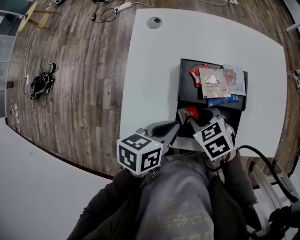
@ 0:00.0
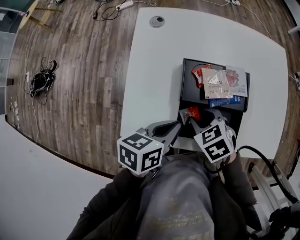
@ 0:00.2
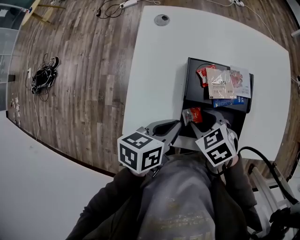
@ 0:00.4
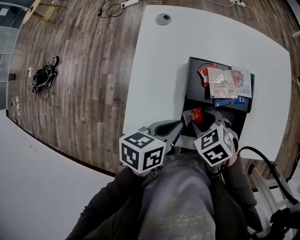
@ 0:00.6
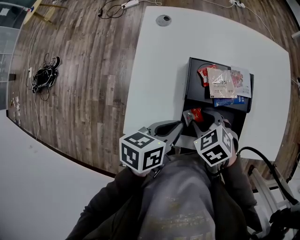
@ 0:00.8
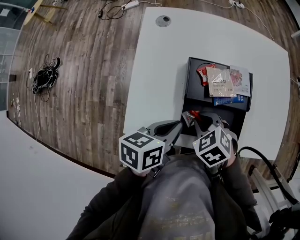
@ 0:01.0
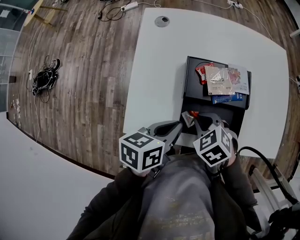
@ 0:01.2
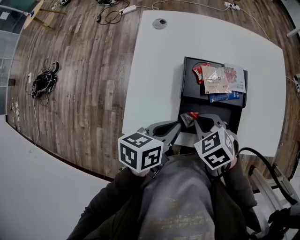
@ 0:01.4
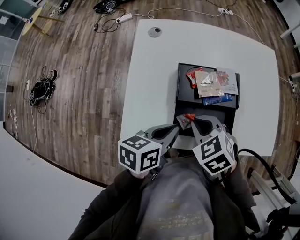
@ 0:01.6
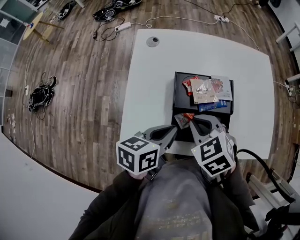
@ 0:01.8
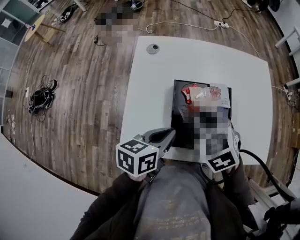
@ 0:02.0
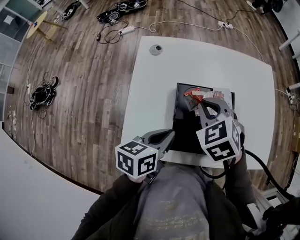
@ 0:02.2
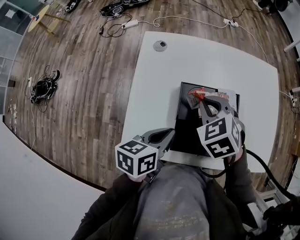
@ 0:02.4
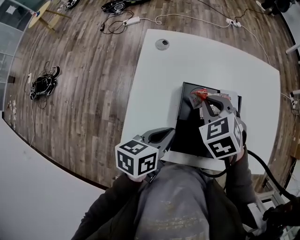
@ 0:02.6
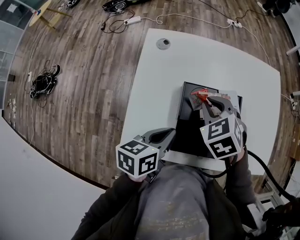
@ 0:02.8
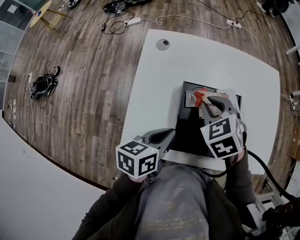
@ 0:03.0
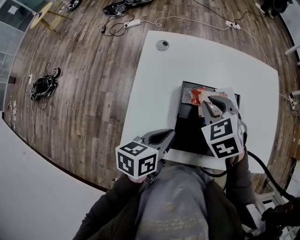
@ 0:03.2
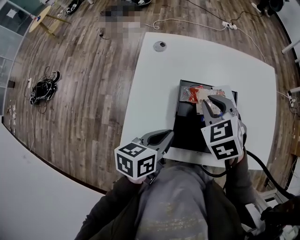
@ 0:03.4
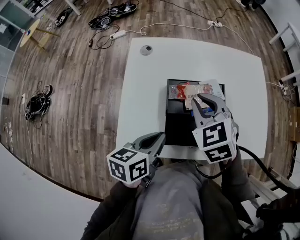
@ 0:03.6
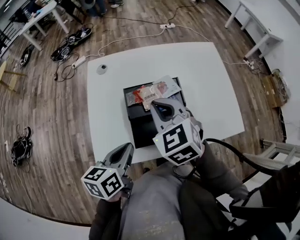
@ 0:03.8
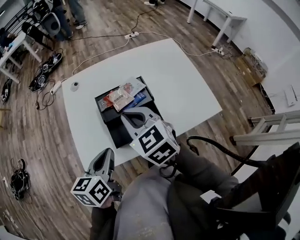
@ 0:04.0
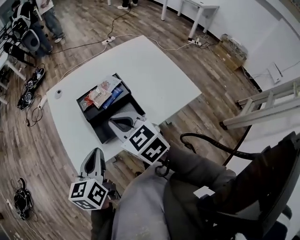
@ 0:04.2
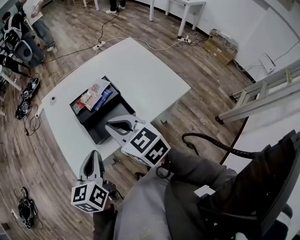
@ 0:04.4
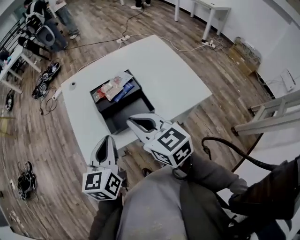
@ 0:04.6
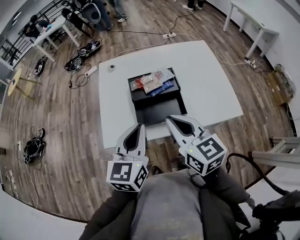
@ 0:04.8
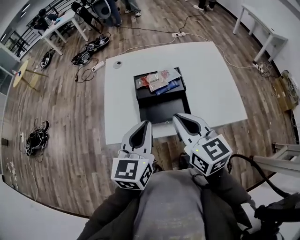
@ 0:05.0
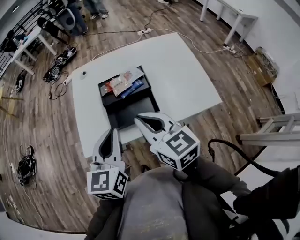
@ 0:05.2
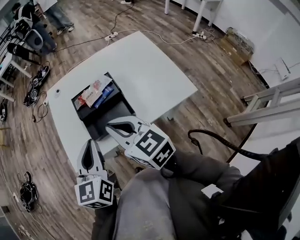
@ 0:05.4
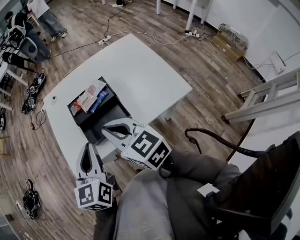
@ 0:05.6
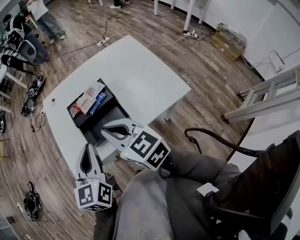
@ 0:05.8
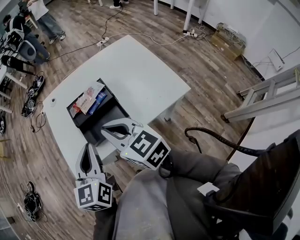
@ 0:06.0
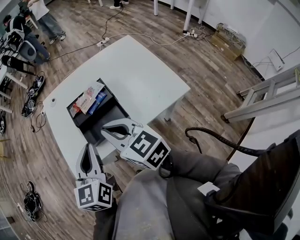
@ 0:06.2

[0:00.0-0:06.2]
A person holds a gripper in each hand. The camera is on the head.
0:00.0 to 0:01.6: The right gripper goes about 5 cm upward, and closes up.
0:01.6 to 0:03.2: The right gripper shifts approximately 15 cm forward and upward.
0:03.2 to 0:04.6: The two grippers go roughly 25 cm backward, upward and to the right. The left gripper turns by some 30 degrees. The right gripper angles its fingers upward, by roughly 40 degrees.
0:04.6 to 0:06.2: There are only small adjustments of the grippers.

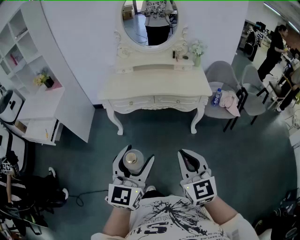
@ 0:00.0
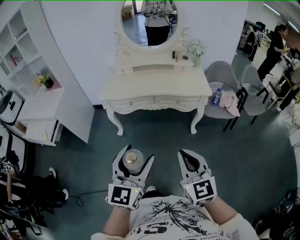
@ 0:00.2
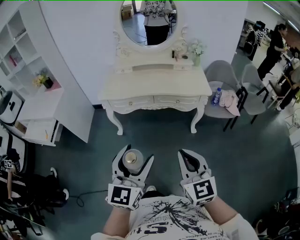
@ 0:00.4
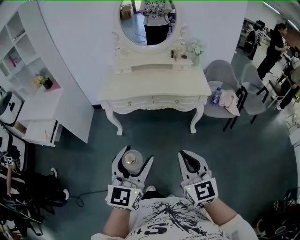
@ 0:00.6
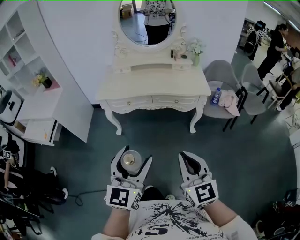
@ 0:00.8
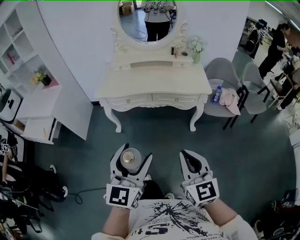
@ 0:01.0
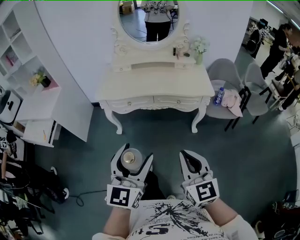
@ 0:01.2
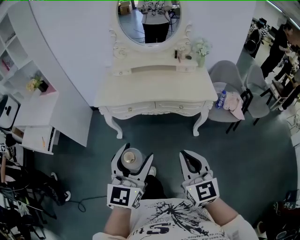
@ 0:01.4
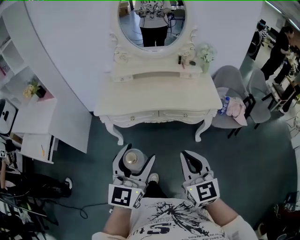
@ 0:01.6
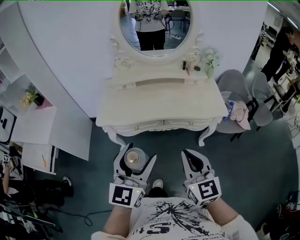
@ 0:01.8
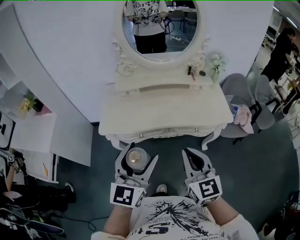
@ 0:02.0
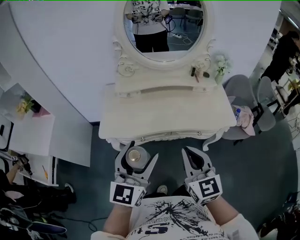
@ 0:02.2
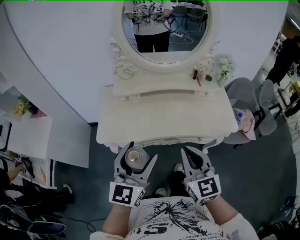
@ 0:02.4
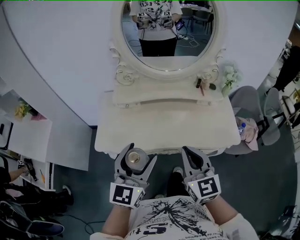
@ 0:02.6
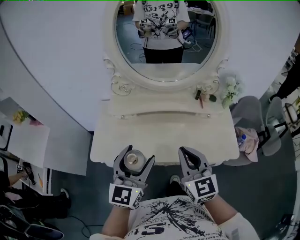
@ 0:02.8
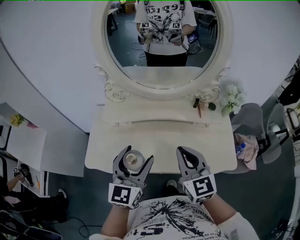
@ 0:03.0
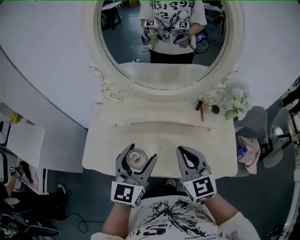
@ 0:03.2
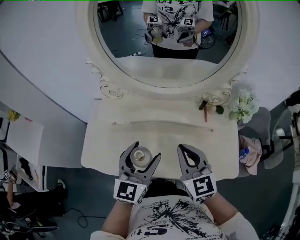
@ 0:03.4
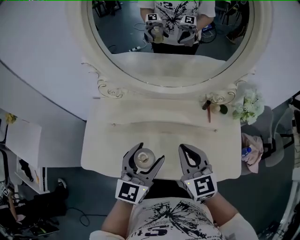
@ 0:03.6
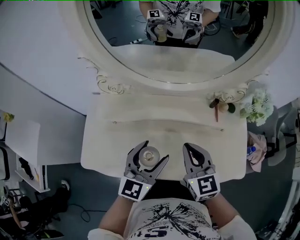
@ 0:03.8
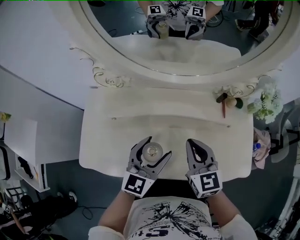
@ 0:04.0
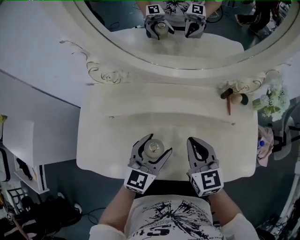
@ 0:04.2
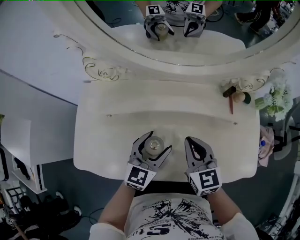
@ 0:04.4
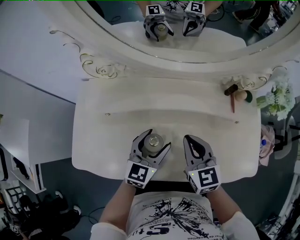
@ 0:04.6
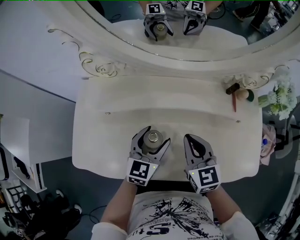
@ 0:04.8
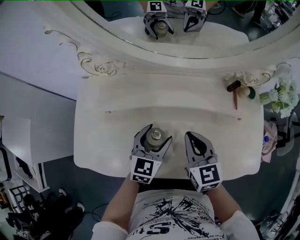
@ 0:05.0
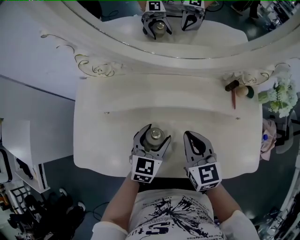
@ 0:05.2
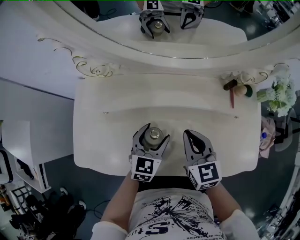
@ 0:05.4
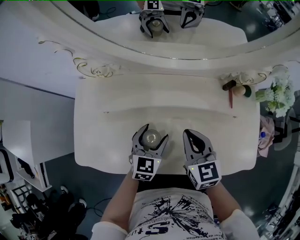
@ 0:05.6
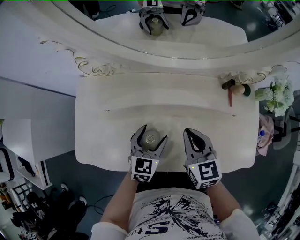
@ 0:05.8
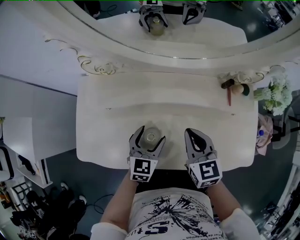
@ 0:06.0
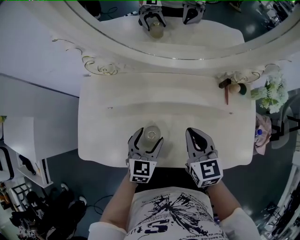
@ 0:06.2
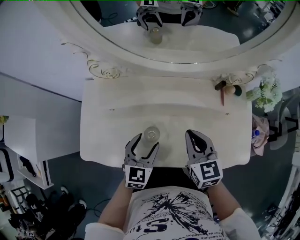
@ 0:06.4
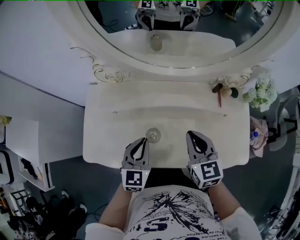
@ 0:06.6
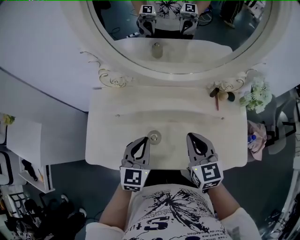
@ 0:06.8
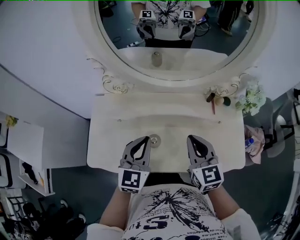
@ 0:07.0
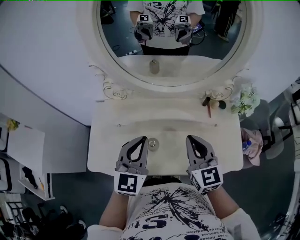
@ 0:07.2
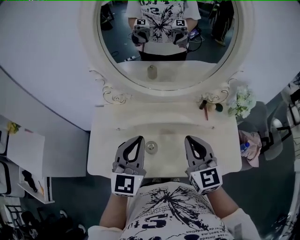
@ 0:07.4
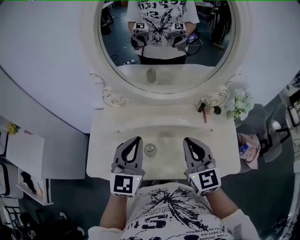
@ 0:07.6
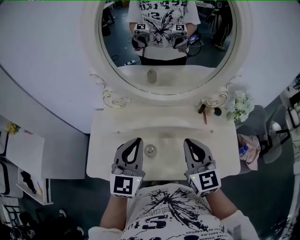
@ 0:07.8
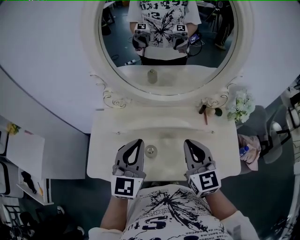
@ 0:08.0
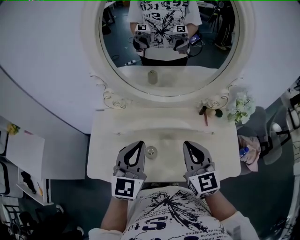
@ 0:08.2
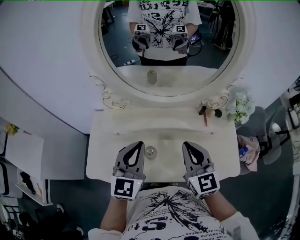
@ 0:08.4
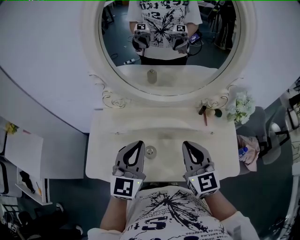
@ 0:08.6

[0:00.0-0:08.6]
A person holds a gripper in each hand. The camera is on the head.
0:00.0 to 0:01.4: Both grippers travel together forward, approximately 10 cm.
0:01.4 to 0:02.8: The pair of grippers is taken forward, some 40 cm.
0:02.8 to 0:04.4: Both grippers travel together downward and forward, roughly 30 cm.
0:04.4 to 0:05.8: The grippers move only a little.
0:05.8 to 0:07.2: The left gripper moves upward, roughly 25 cm, changes its angle by roughly 30 degrees, and closes, while the right gripper moves upward, approximately 15 cm.
0:07.2 to 0:08.6: The grippers move only a little.

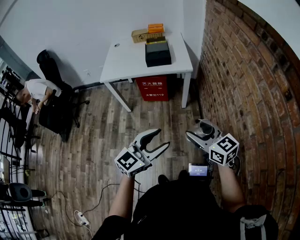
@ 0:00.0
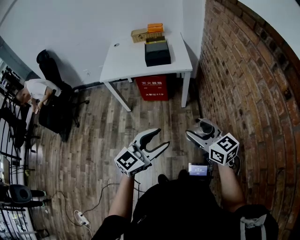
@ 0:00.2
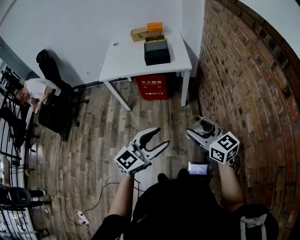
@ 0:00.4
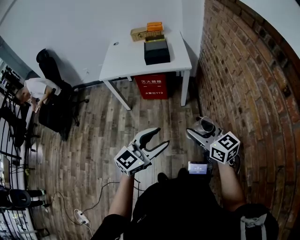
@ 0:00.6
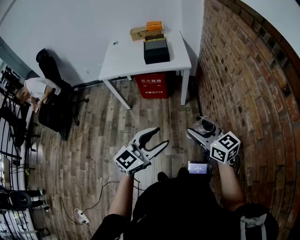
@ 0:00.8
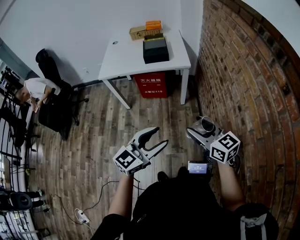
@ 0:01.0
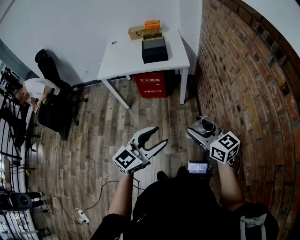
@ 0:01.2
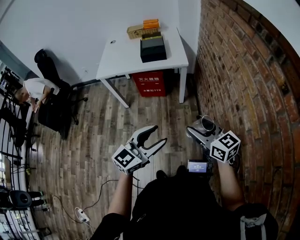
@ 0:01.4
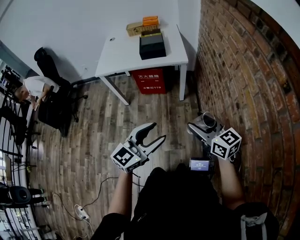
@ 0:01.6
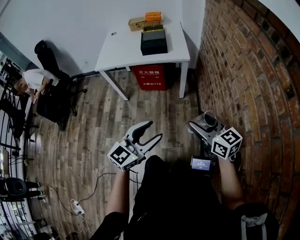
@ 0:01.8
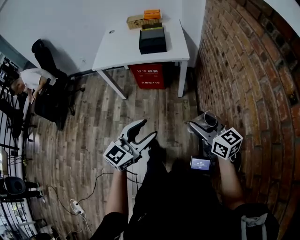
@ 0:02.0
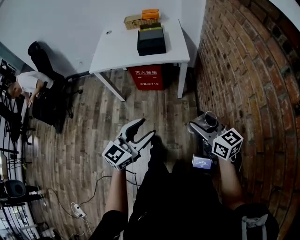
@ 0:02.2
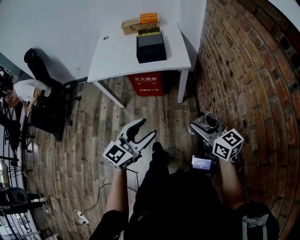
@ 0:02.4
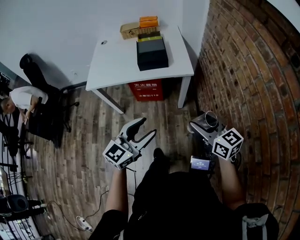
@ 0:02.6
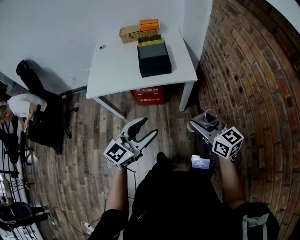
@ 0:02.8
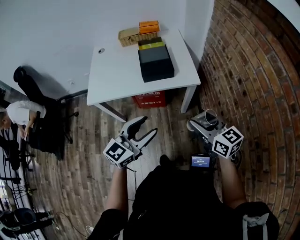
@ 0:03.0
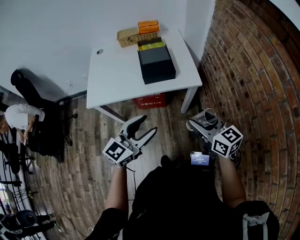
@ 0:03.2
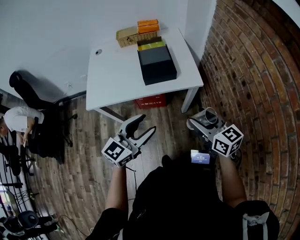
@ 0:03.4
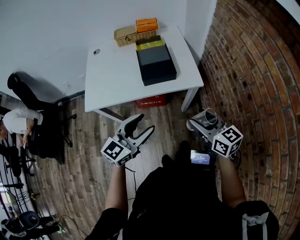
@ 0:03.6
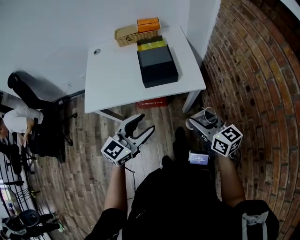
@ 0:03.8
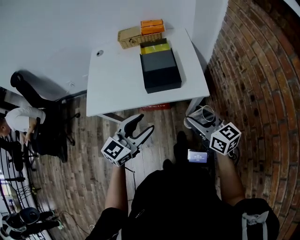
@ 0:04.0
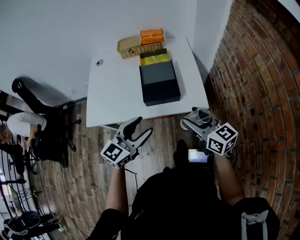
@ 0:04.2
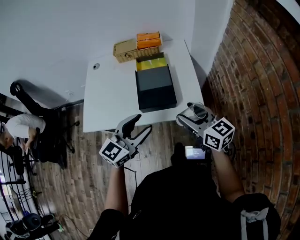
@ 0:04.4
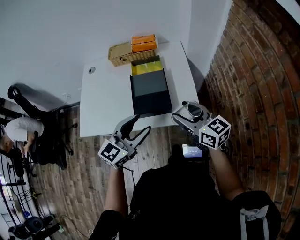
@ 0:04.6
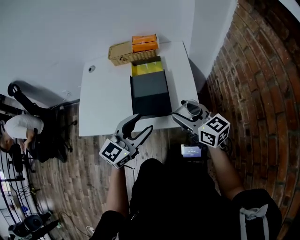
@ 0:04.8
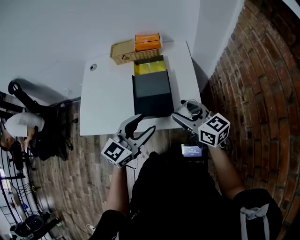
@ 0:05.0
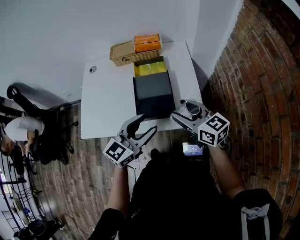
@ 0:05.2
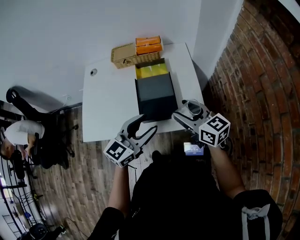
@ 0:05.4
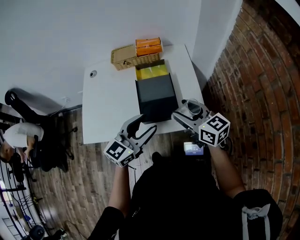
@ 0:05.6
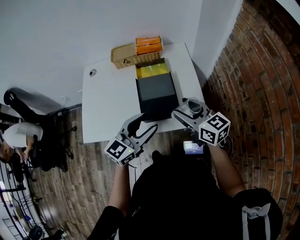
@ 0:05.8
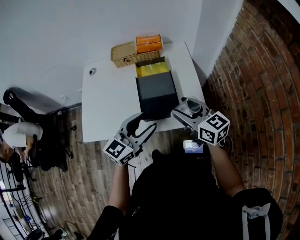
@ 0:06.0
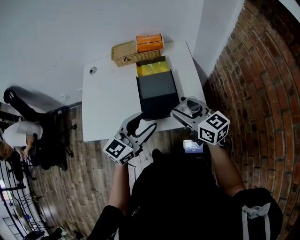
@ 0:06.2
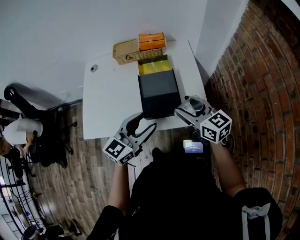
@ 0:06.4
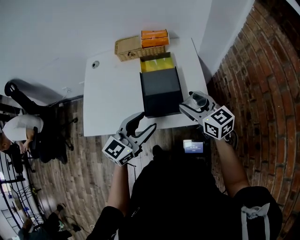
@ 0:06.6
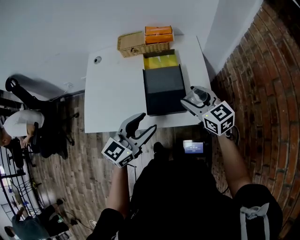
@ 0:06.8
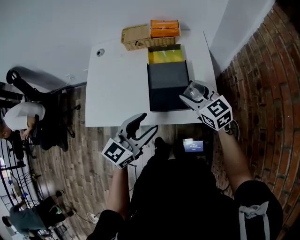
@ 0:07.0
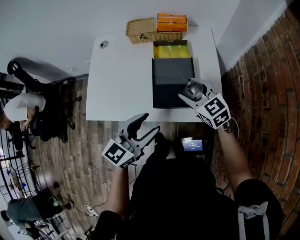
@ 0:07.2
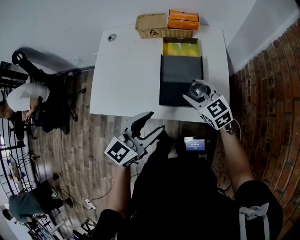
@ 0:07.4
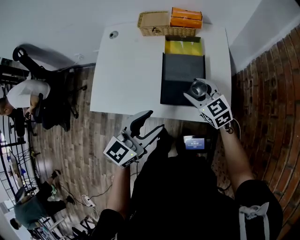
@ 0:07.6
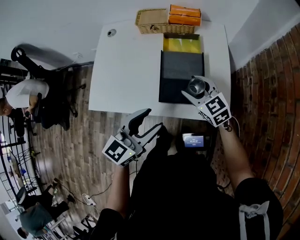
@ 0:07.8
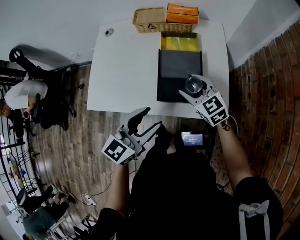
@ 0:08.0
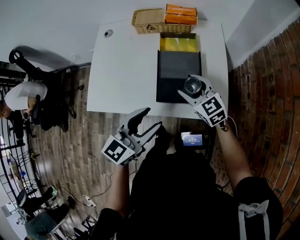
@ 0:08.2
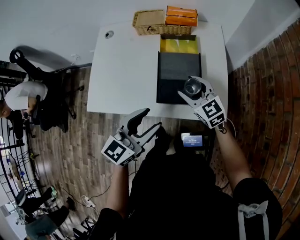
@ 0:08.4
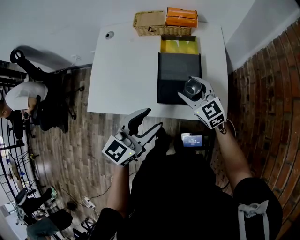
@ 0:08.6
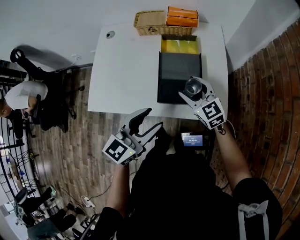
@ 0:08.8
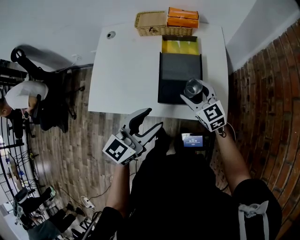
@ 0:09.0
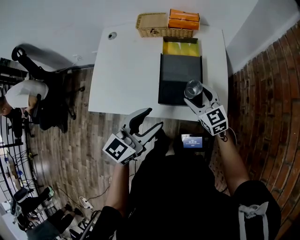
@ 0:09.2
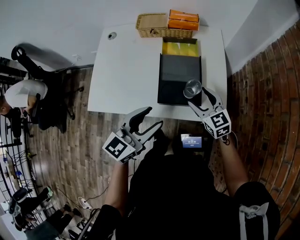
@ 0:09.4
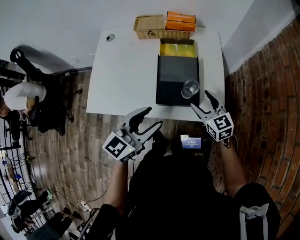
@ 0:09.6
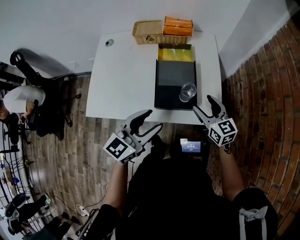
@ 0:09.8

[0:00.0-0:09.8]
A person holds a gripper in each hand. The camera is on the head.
0:00.0 to 0:01.4: The grippers make only small movements.
0:01.4 to 0:02.8: The left gripper heads forward and to the left, covering approximately 25 cm; the right gripper is displaced forward by roughly 25 cm.
0:02.8 to 0:04.2: The grippers both shift forward by approximately 25 cm.
0:04.2 to 0:05.6: The grippers both shift forward by some 15 cm.
0:05.6 to 0:07.0: The right gripper heads forward, covering approximately 5 cm, and swivels approximately 20 degrees.
0:07.0 to 0:08.4: The right gripper travels downward by some 5 cm.
0:08.4 to 0:09.8: The right gripper is displaced to the right by approximately 10 cm, and turns by approximately 20 degrees.
